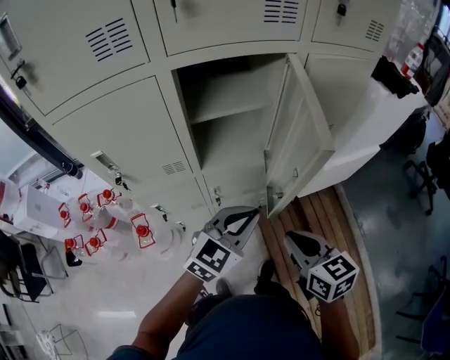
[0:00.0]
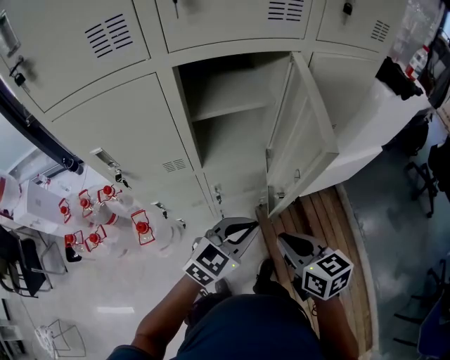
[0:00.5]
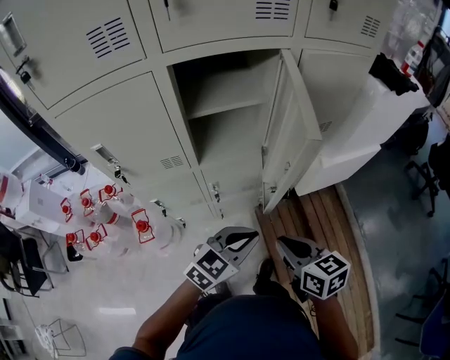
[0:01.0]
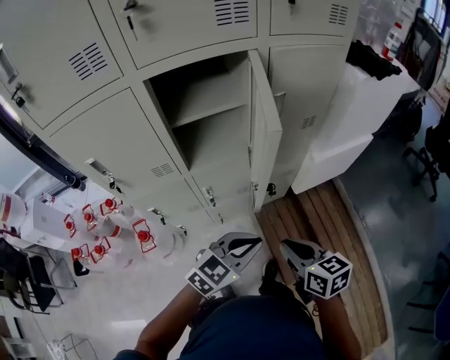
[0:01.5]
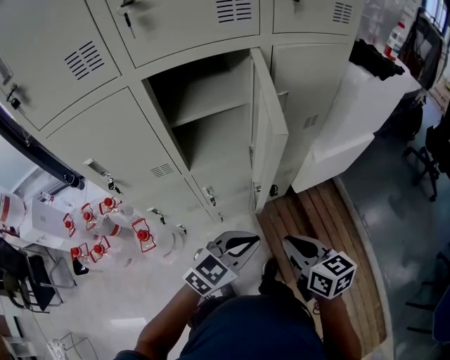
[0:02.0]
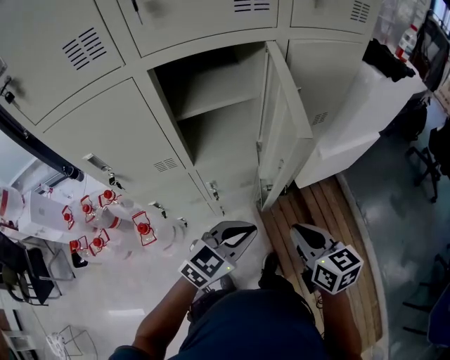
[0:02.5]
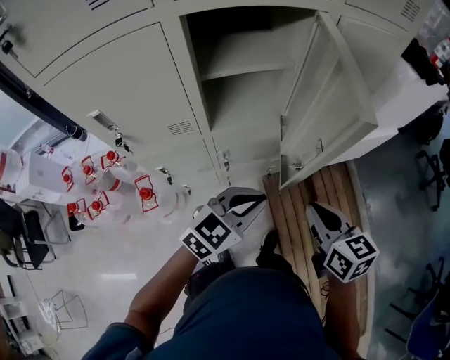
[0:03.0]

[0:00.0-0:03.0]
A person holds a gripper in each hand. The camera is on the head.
0:00.0 to 0:01.5: The left gripper travels backward and to the right by about 10 cm. Meanwhile the right gripper shifts roughly 5 cm to the right.
0:01.5 to 0:03.0: The left gripper heads to the left and forward, covering roughly 10 cm. Meanwhile the right gripper heads forward, covering roughly 5 cm.

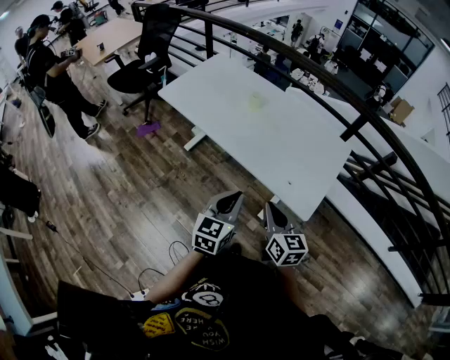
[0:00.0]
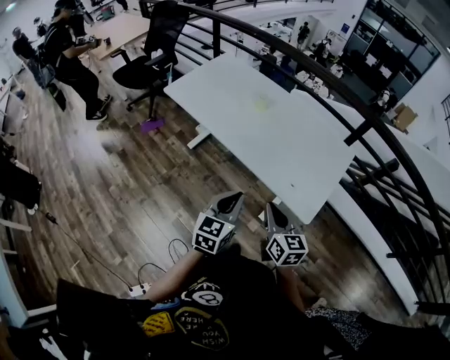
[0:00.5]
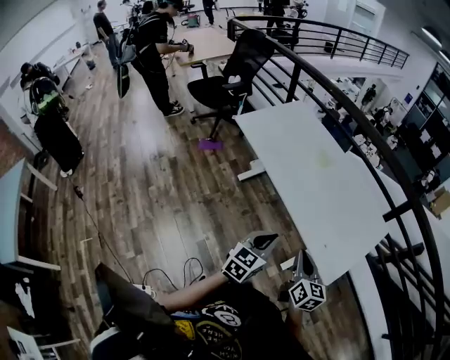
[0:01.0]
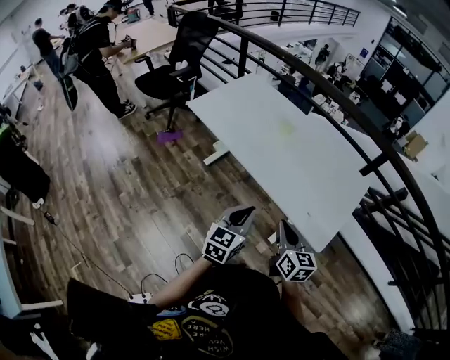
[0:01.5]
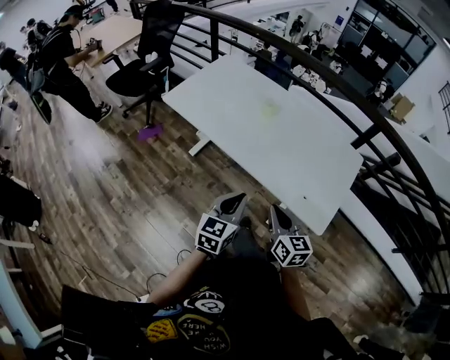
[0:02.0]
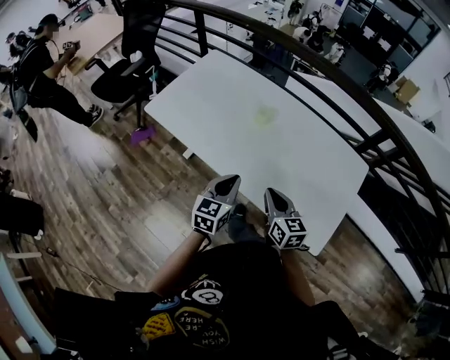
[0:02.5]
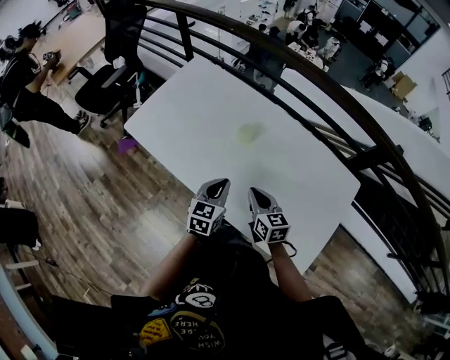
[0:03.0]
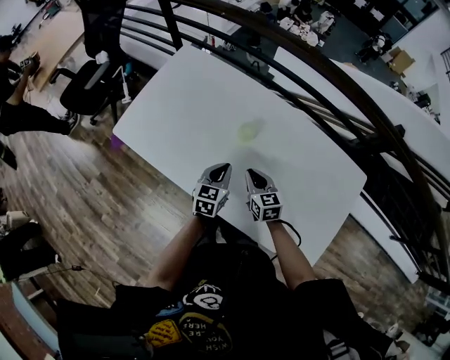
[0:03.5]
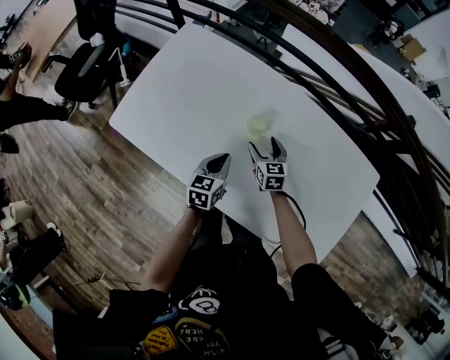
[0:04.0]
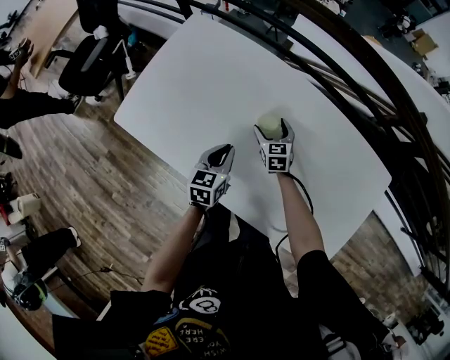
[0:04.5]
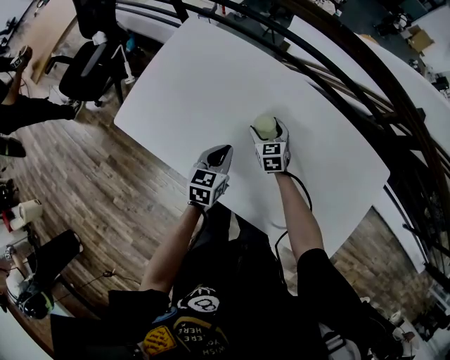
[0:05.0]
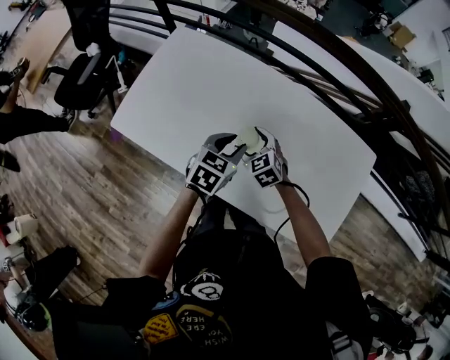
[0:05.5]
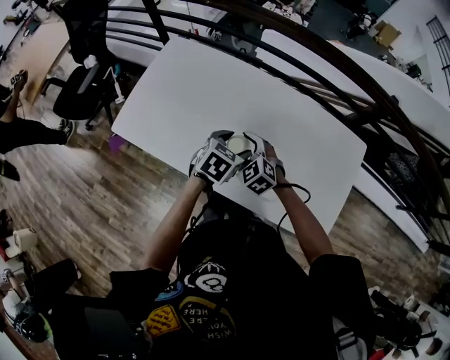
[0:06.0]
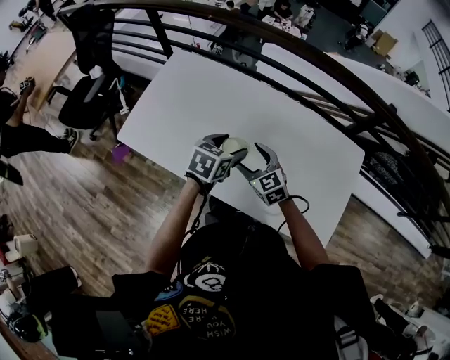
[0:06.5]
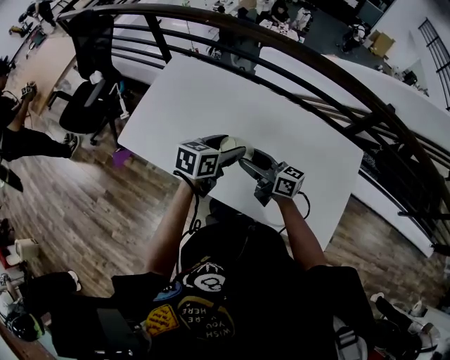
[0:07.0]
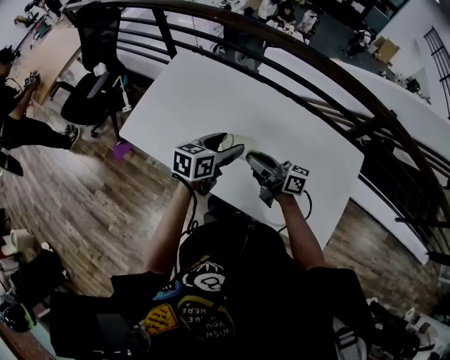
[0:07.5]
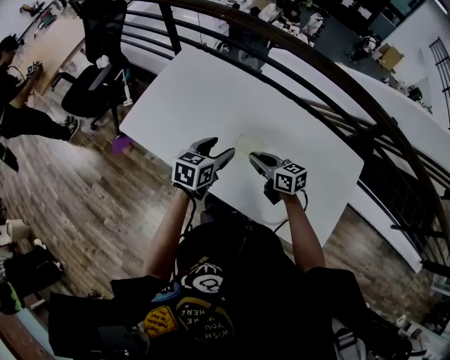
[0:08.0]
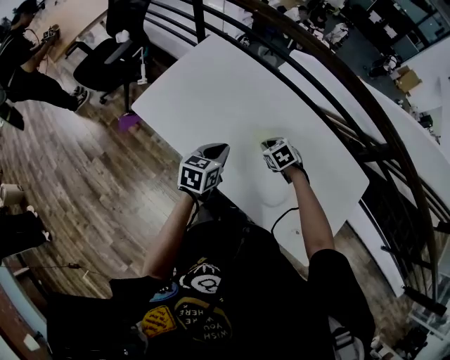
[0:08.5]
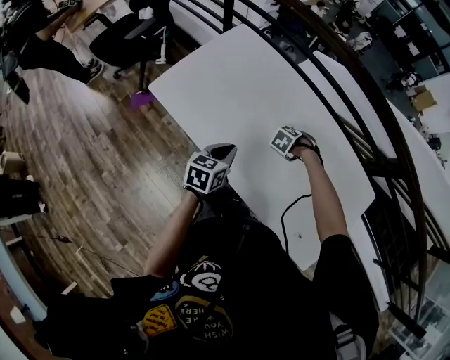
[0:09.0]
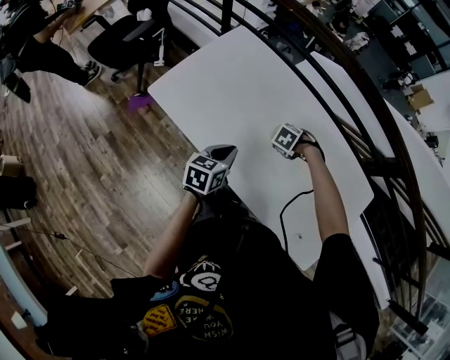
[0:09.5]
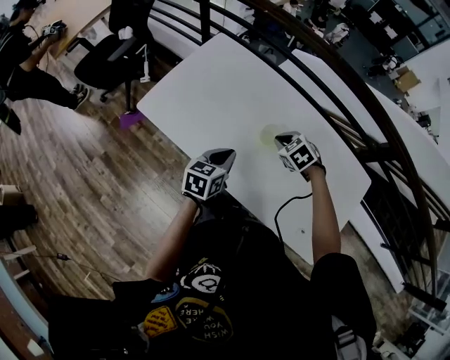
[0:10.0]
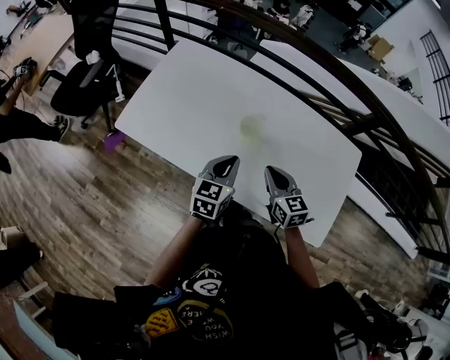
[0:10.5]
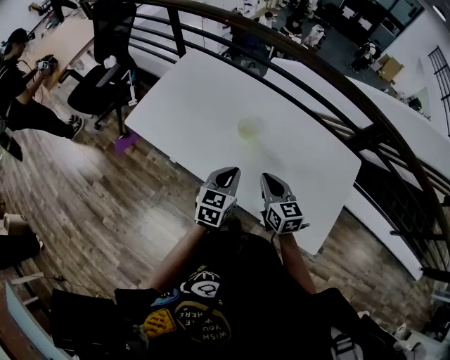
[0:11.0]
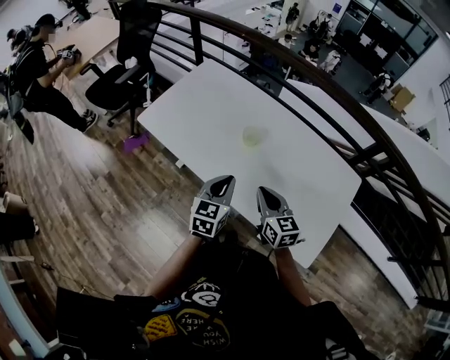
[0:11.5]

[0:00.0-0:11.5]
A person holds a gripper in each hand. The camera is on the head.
0:00.0 to 0:02.0: Both grippers move to the left and forward, some 10 cm.
0:02.0 to 0:04.0: The pair of grippers is taken forward, about 50 cm. Both grippers travel together downward, some 25 cm. The right gripper opens up.
0:04.0 to 0:06.0: The right gripper is displaced upward, backward and to the left by approximately 20 cm, and turns by approximately 40 degrees; the left gripper travels upward and to the right by some 15 cm, turns by approximately 30 degrees, and opens its fingers.
0:06.0 to 0:07.5: The left gripper travels upward by approximately 5 cm, and swivels roughly 30 degrees. Meanwhile the right gripper moves upward, roughly 10 cm, angles its fingers upward, by roughly 50 degrees, and closes its fingers.
0:07.5 to 0:09.5: The left gripper ends up approximately 15 cm from where it was, swivels approximately 20 degrees, and closes its fingers. Meanwhile the right gripper travels downward by roughly 20 cm, and points its fingers some 100 degrees further downward.
0:09.5 to 0:11.5: The left gripper moves approximately 20 cm, and rotates some 20 degrees, while the right gripper ends up roughly 30 cm from where it was, and angles its fingers upward, by approximately 70 degrees.

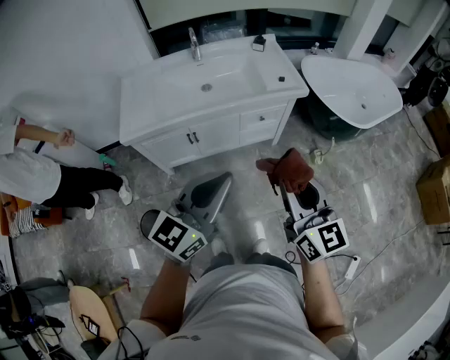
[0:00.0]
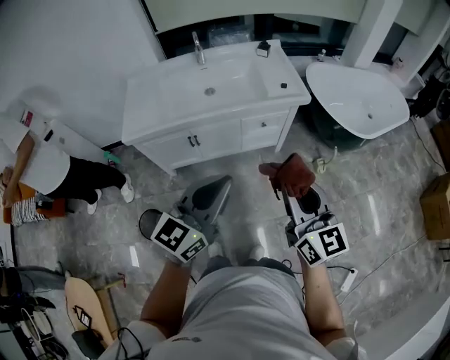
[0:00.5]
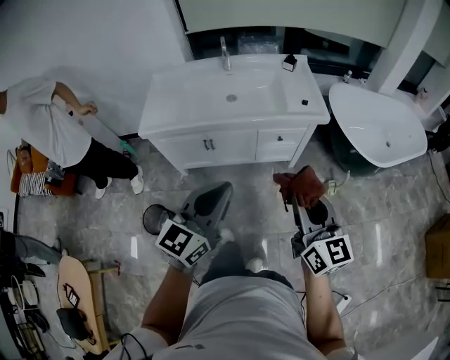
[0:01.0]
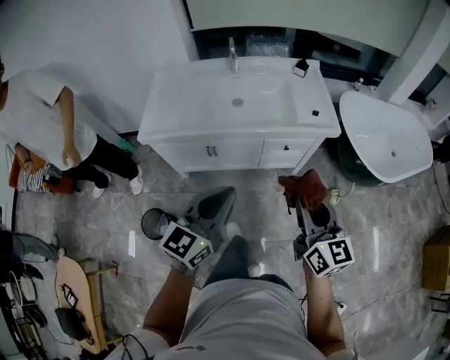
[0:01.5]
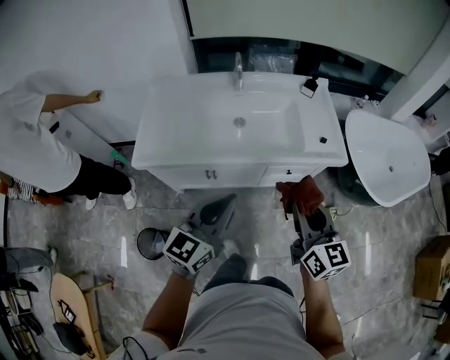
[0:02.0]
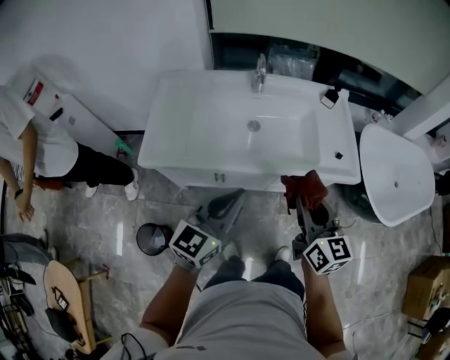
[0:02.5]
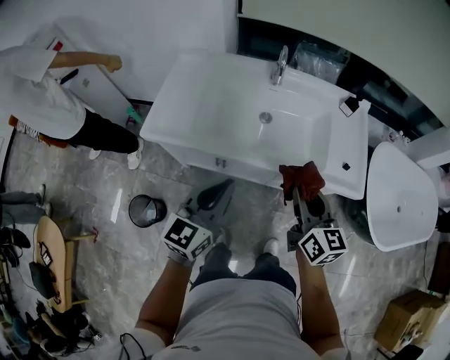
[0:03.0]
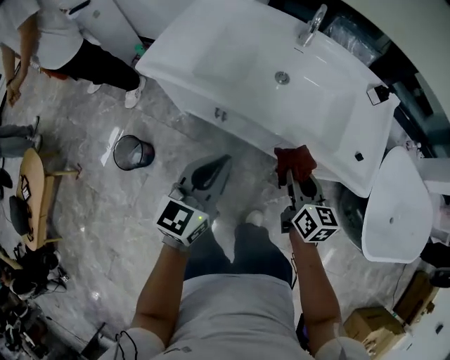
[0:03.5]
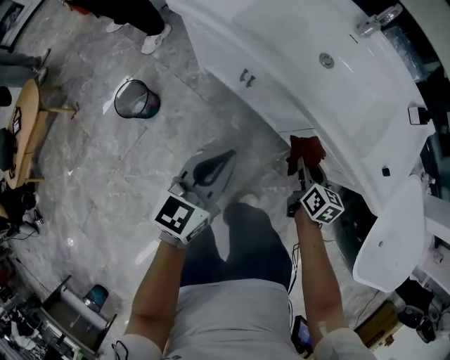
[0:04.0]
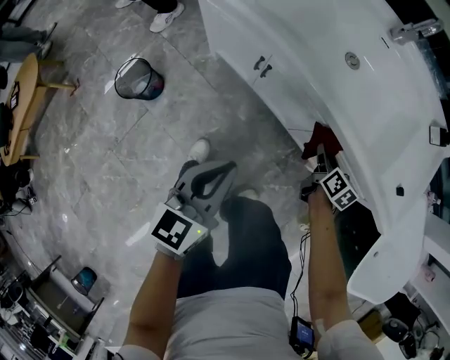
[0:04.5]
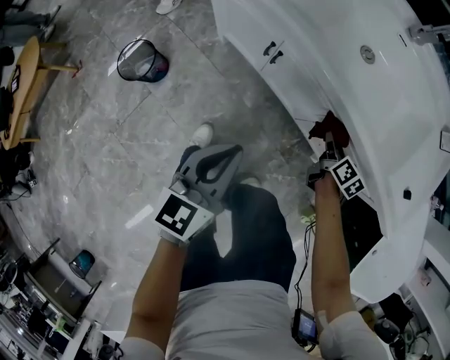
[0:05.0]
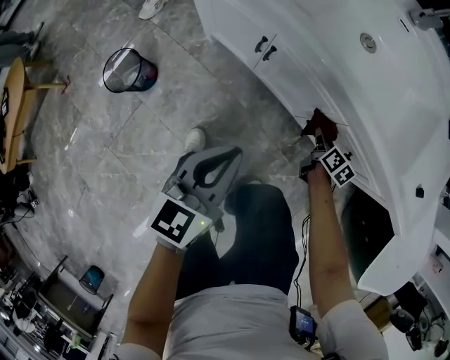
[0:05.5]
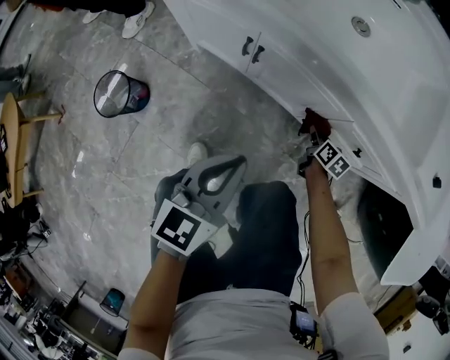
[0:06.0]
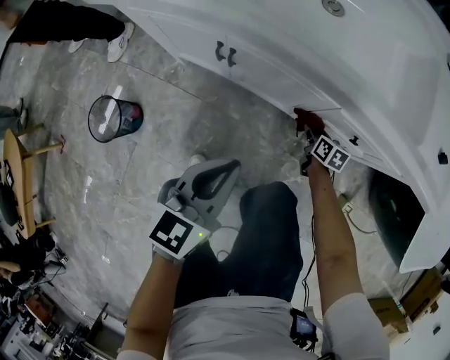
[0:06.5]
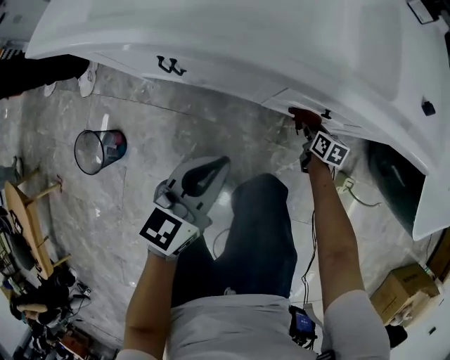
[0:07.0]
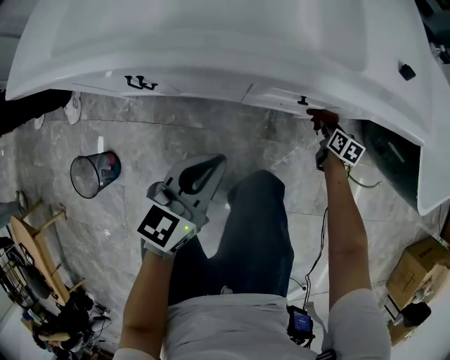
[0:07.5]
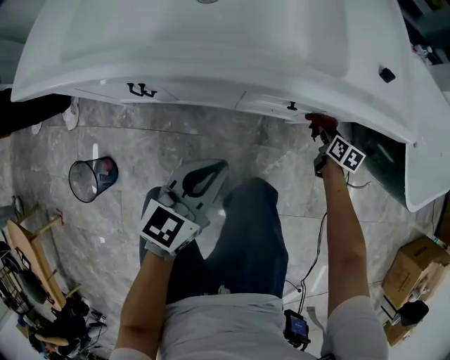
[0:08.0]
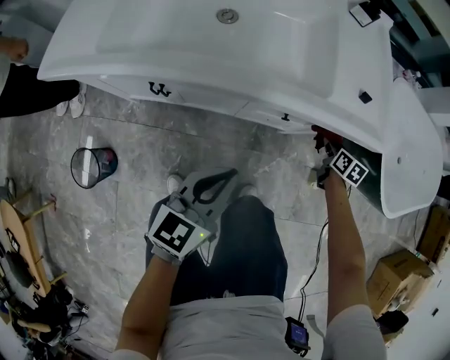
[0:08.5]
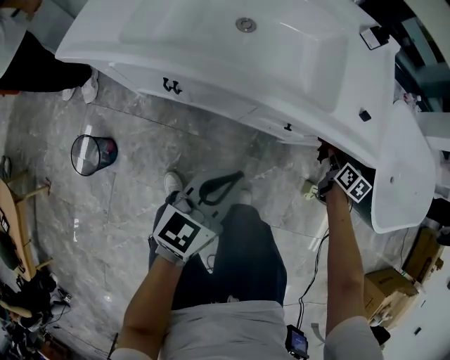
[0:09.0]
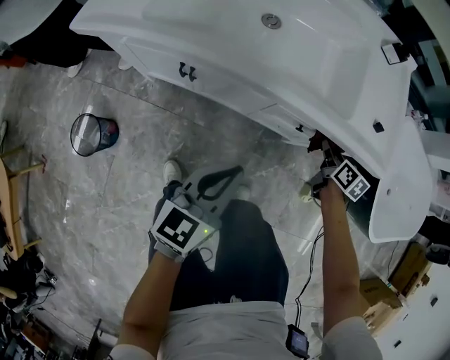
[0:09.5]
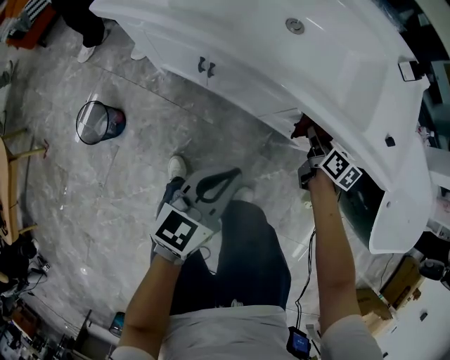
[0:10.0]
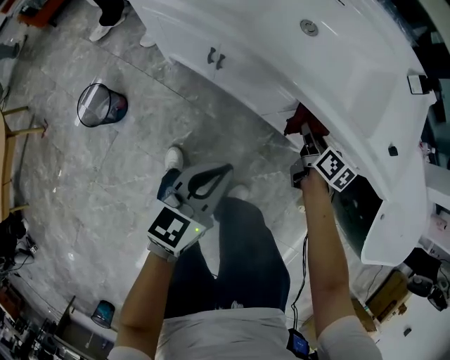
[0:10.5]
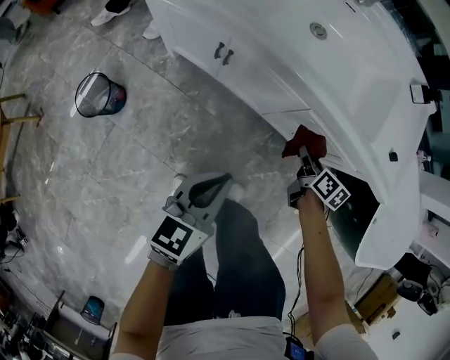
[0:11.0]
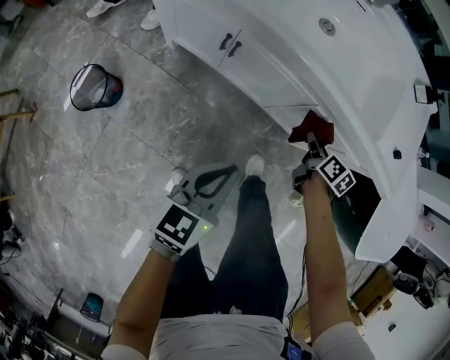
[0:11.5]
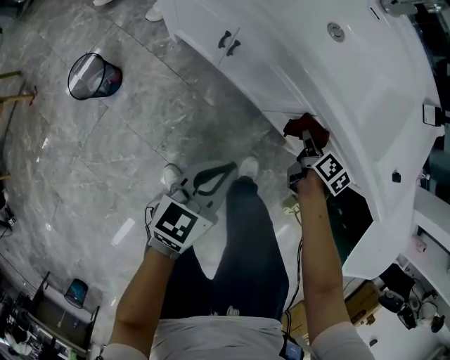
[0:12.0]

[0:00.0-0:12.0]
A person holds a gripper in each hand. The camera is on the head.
0:00.0 to 0:02.0: The two grippers go about 25 cm forward.
0:02.0 to 0:04.0: The left gripper shifts about 20 cm downward, and swivels some 40 degrees; the right gripper is displaced downward by approximately 35 cm, and changes its angle by some 40 degrees.
0:04.0 to 0:06.0: The right gripper goes about 30 cm downward, while the left gripper is displaced downward by about 15 cm.
0:06.0 to 0:08.0: The left gripper moves some 15 cm, and changes its angle by roughly 30 degrees, while the right gripper changes place by roughly 30 cm.
0:08.0 to 0:10.0: The left gripper travels upward, backward and to the left by approximately 10 cm, and changes its angle by approximately 20 degrees. The right gripper shifts about 30 cm to the left and upward, and swivels approximately 20 degrees.
0:10.0 to 0:12.0: The two grippers go about 5 cm downward.
